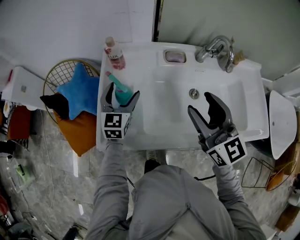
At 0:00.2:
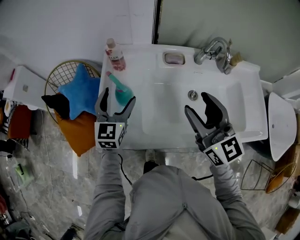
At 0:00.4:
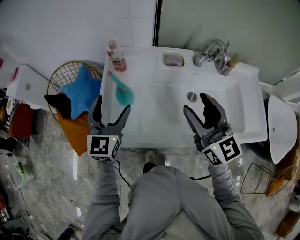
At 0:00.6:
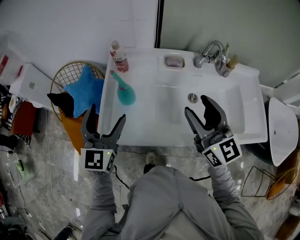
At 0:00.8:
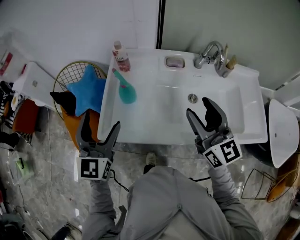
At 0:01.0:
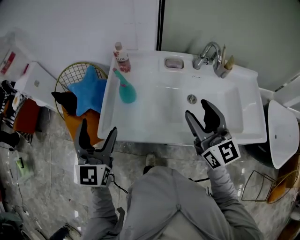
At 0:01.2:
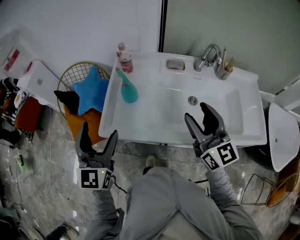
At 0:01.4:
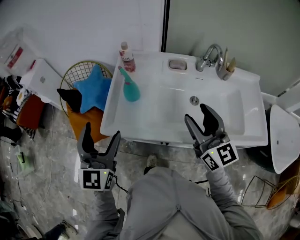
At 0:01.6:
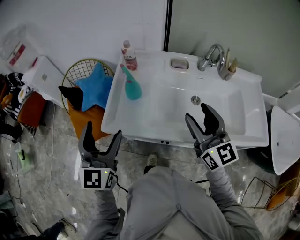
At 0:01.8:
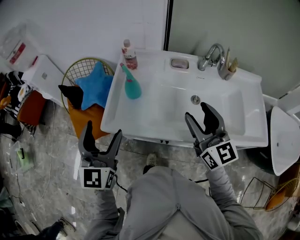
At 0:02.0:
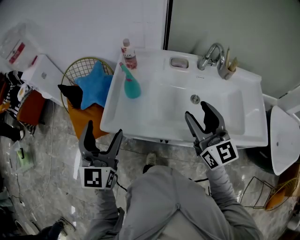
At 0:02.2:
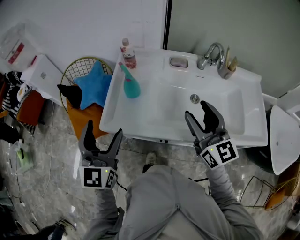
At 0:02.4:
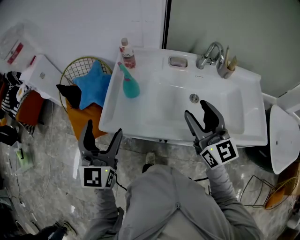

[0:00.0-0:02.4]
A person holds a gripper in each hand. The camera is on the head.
0:00.0 to 0:01.2: The right gripper goes roughly 5 cm backward. Meanwhile the left gripper shifts some 30 cm backward and upward.
0:01.2 to 0:02.4: The grippers move only a little.

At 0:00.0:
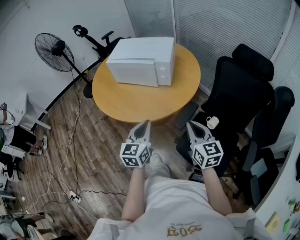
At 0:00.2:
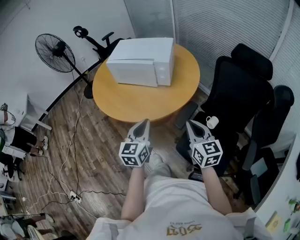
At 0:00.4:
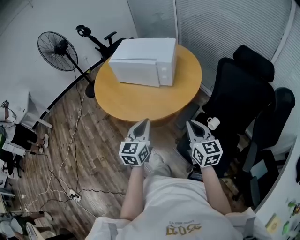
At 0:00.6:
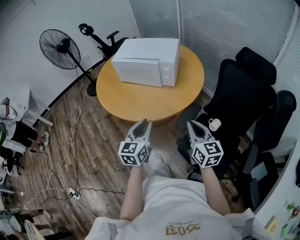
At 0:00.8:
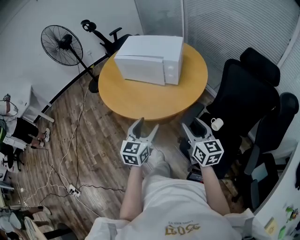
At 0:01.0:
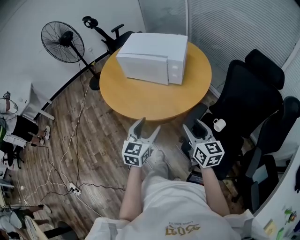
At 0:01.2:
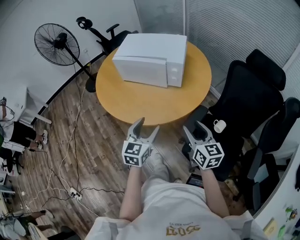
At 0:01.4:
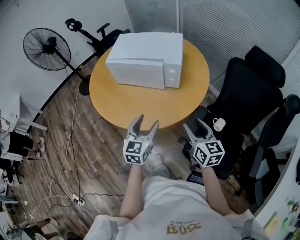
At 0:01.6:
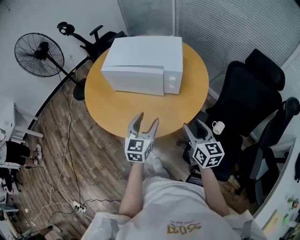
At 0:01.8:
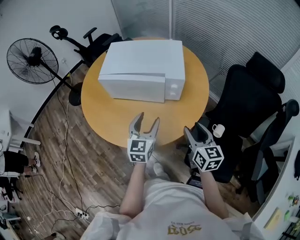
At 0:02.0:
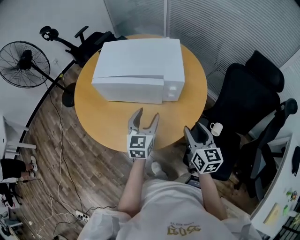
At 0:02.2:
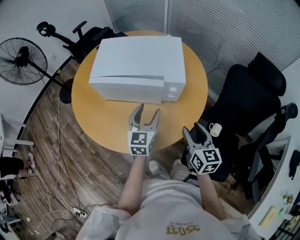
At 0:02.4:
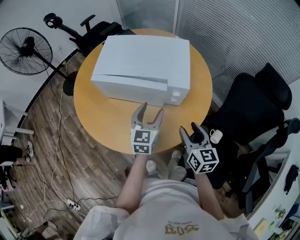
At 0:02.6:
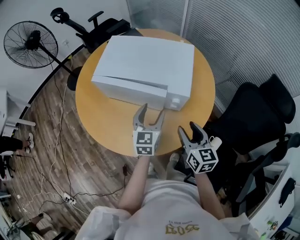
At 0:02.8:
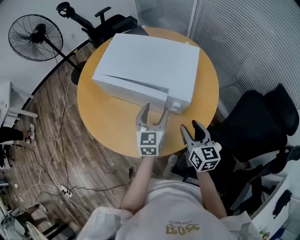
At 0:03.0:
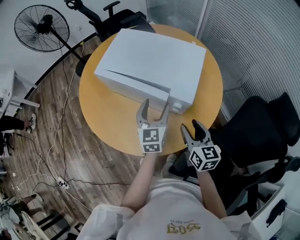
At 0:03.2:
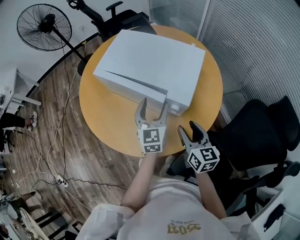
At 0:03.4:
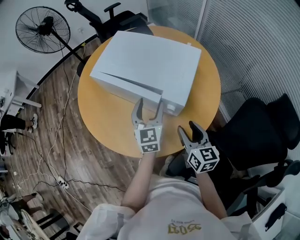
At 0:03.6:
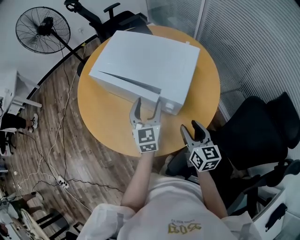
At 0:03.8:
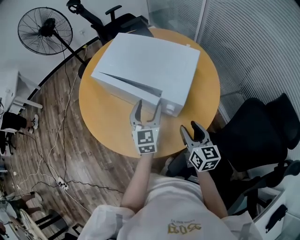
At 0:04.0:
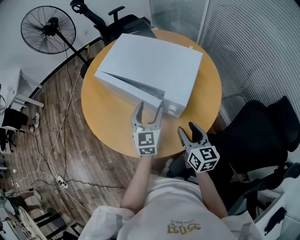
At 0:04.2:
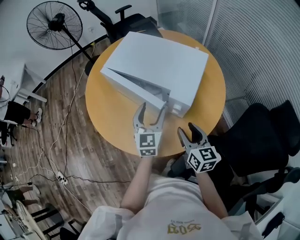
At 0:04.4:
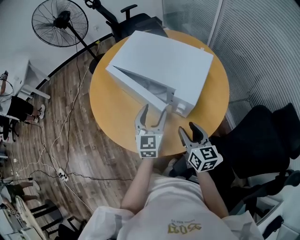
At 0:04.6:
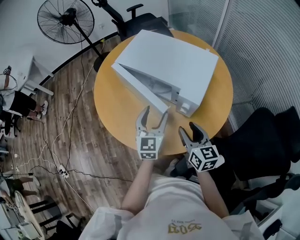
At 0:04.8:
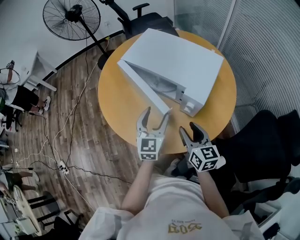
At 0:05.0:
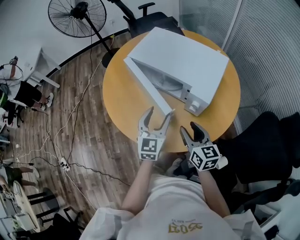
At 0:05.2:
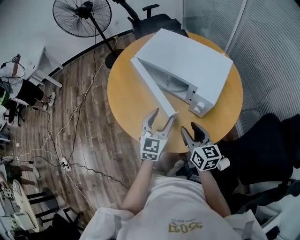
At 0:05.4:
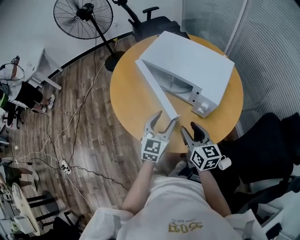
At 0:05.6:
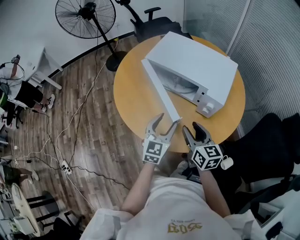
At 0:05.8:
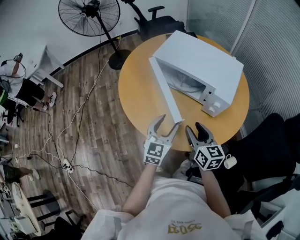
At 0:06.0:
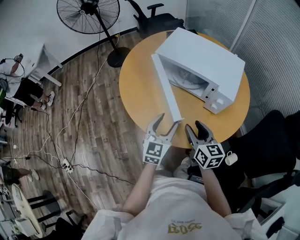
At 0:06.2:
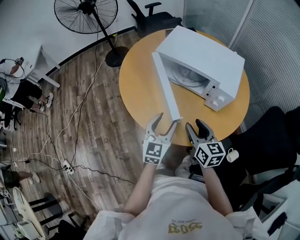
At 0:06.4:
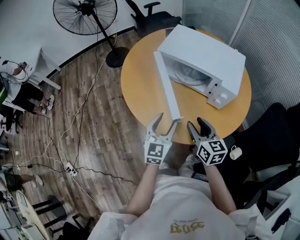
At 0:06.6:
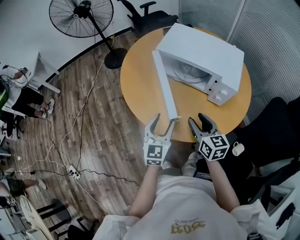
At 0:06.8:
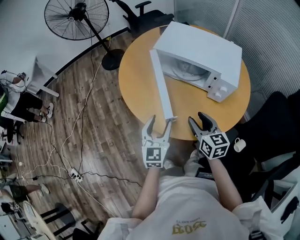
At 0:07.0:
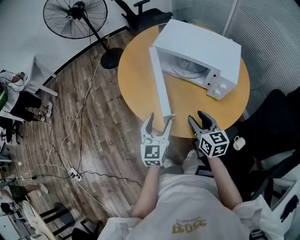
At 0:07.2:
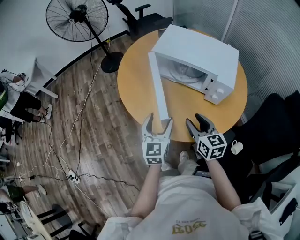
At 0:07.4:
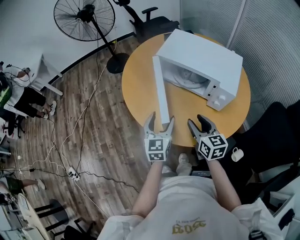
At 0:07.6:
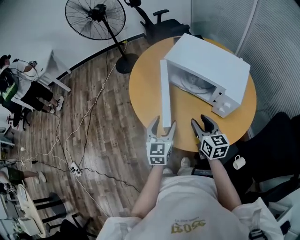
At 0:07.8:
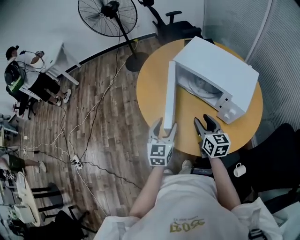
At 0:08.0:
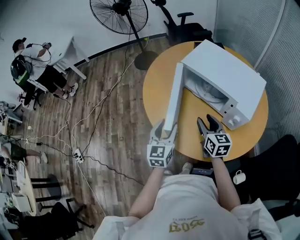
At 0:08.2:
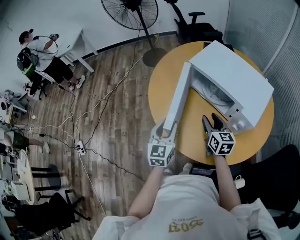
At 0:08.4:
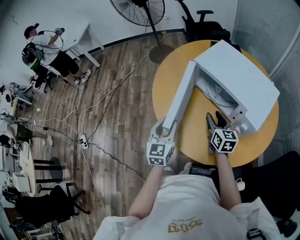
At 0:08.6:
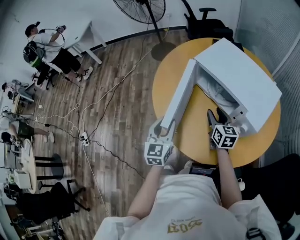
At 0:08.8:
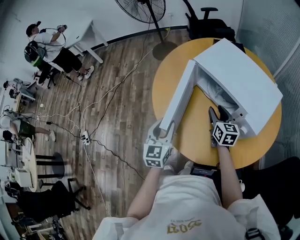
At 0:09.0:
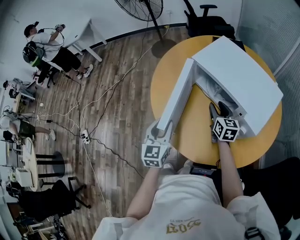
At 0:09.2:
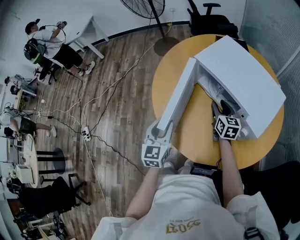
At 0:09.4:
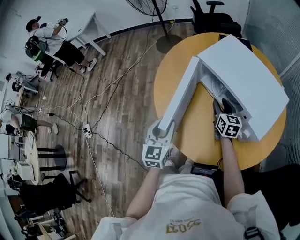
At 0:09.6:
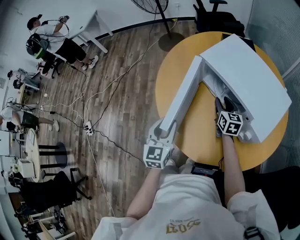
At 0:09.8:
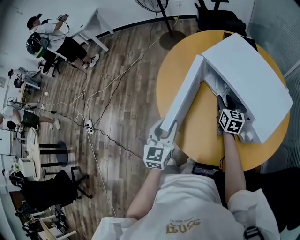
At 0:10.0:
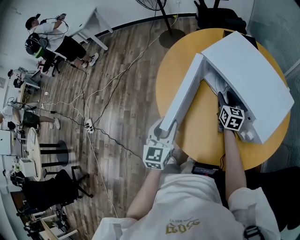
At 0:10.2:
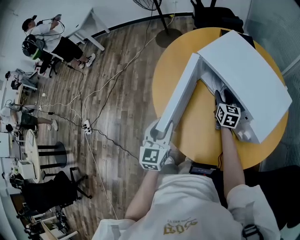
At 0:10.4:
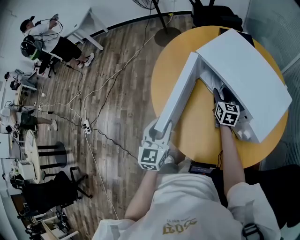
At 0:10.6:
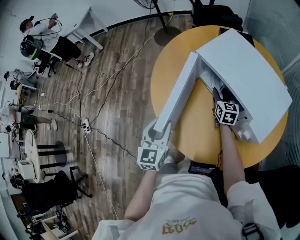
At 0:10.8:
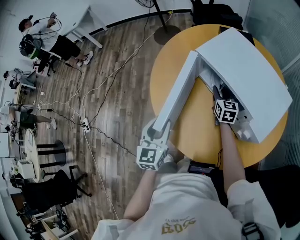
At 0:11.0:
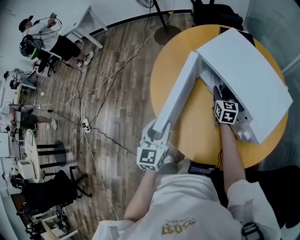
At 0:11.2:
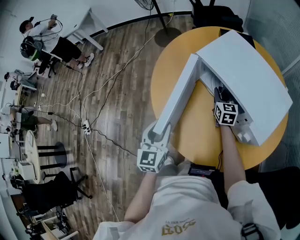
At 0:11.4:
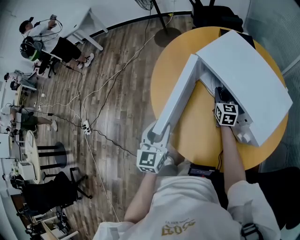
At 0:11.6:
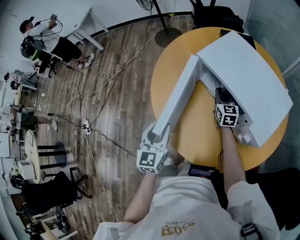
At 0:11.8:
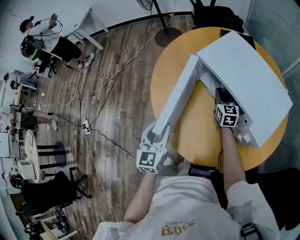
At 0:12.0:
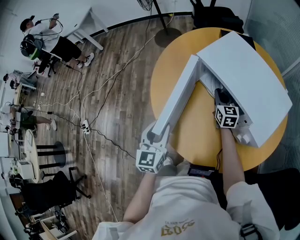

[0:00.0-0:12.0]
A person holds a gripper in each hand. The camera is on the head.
0:00.0 to 0:01.6: The right gripper shifts some 15 cm forward and to the left, and opens up, while the left gripper travels forward by about 15 cm, and opens up.
0:01.6 to 0:03.0: Both grippers move forward, roughly 20 cm. The left gripper swivels roughly 20 degrees.
0:03.0 to 0:04.4: The grippers stay close to where they were, moving slightly.
0:04.4 to 0:06.0: The right gripper is displaced to the left by some 15 cm. Meanwhile the left gripper heads to the left and backward, covering some 15 cm.
0:06.0 to 0:07.6: The left gripper is displaced to the left by some 5 cm.
0:07.6 to 0:09.0: The left gripper closes. The right gripper moves forward, about 15 cm.
0:09.0 to 0:10.4: The right gripper shifts some 10 cm forward.
0:10.4 to 0:12.0: The right gripper closes its fingers.

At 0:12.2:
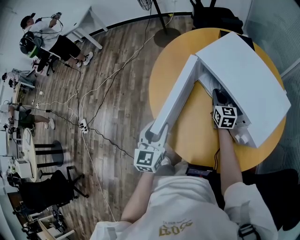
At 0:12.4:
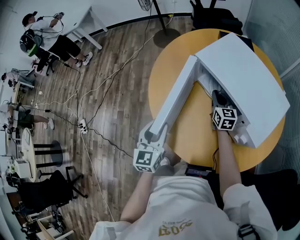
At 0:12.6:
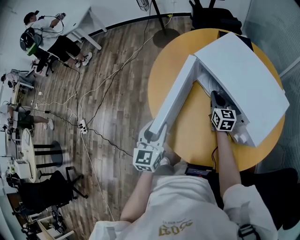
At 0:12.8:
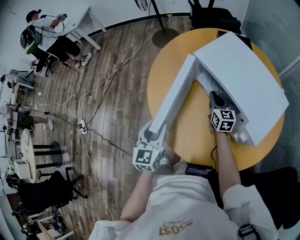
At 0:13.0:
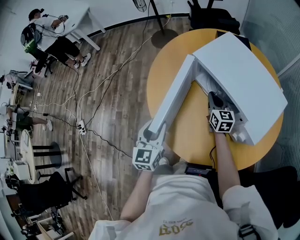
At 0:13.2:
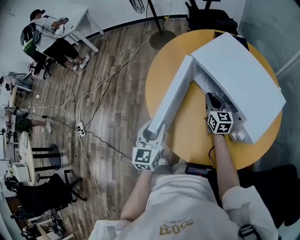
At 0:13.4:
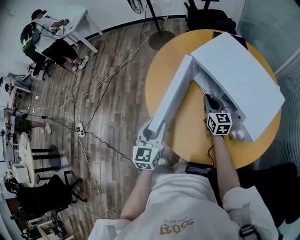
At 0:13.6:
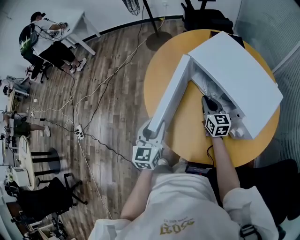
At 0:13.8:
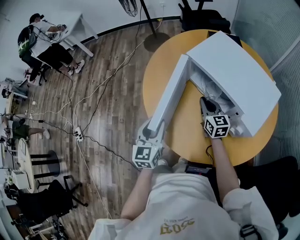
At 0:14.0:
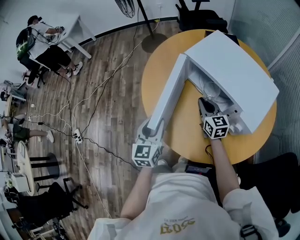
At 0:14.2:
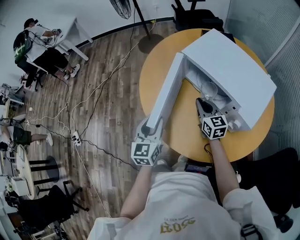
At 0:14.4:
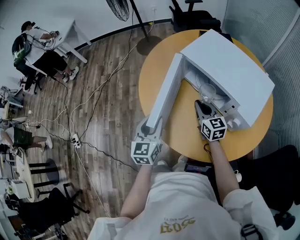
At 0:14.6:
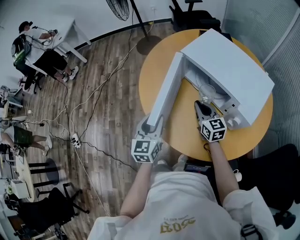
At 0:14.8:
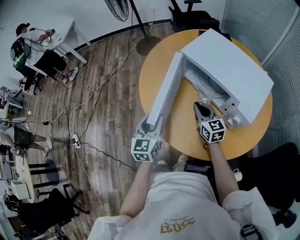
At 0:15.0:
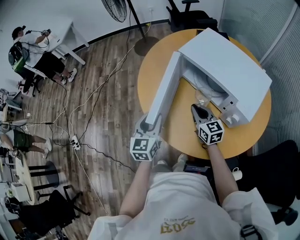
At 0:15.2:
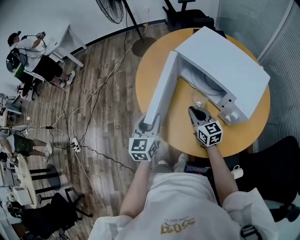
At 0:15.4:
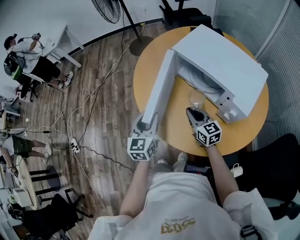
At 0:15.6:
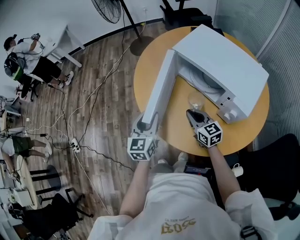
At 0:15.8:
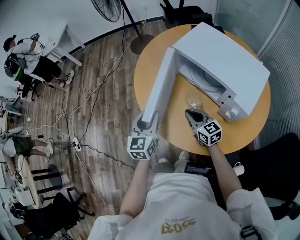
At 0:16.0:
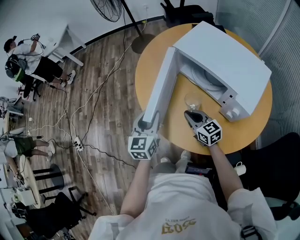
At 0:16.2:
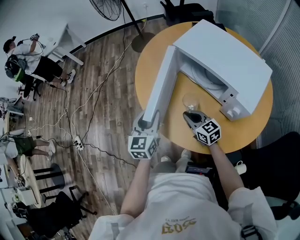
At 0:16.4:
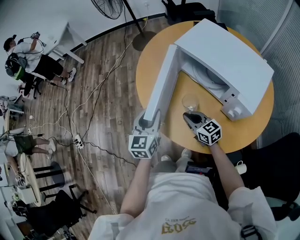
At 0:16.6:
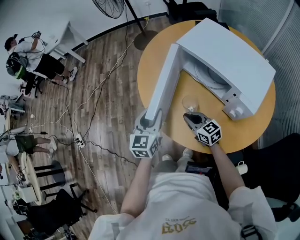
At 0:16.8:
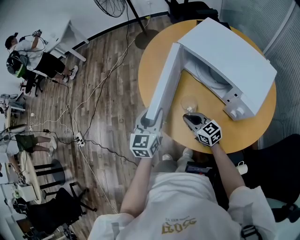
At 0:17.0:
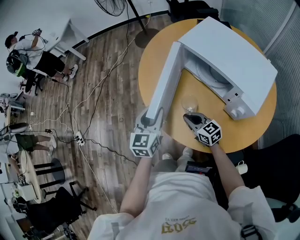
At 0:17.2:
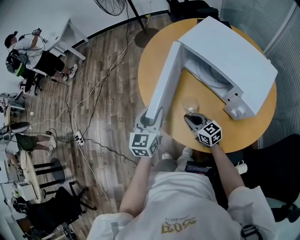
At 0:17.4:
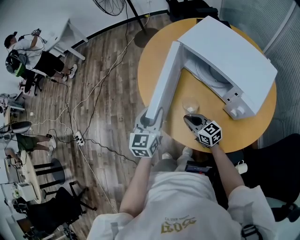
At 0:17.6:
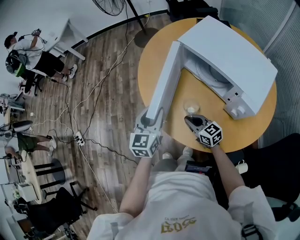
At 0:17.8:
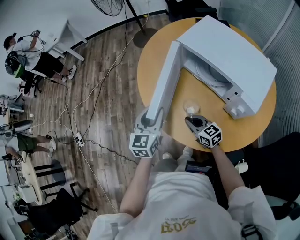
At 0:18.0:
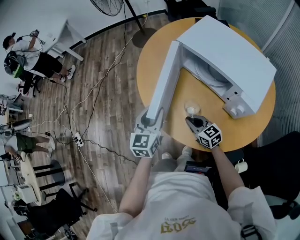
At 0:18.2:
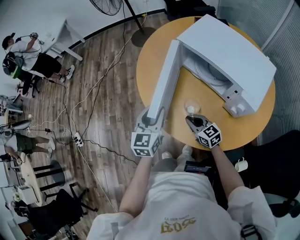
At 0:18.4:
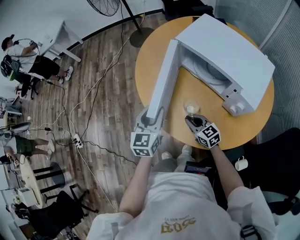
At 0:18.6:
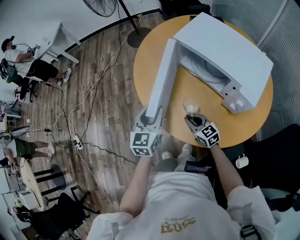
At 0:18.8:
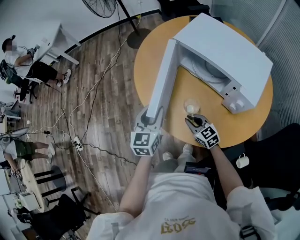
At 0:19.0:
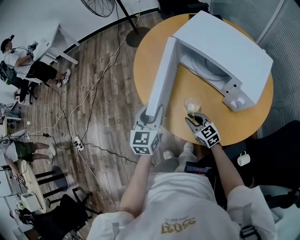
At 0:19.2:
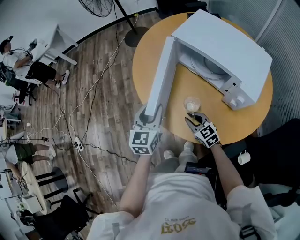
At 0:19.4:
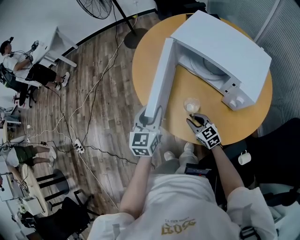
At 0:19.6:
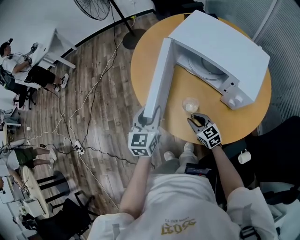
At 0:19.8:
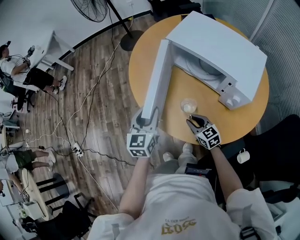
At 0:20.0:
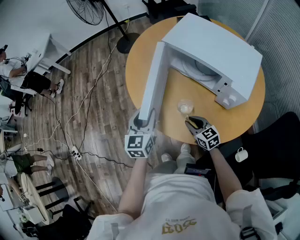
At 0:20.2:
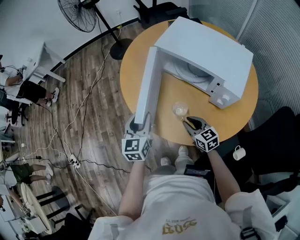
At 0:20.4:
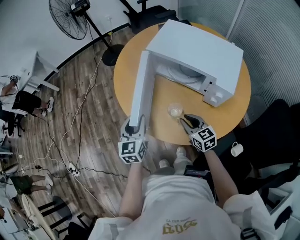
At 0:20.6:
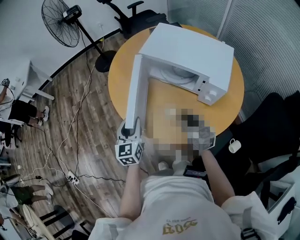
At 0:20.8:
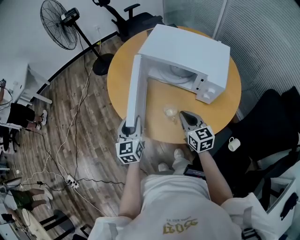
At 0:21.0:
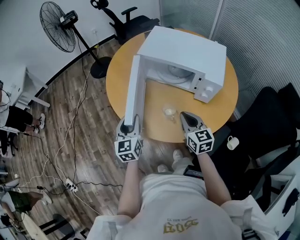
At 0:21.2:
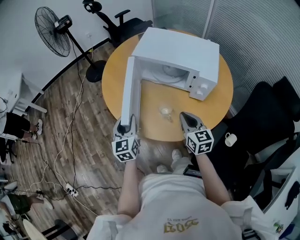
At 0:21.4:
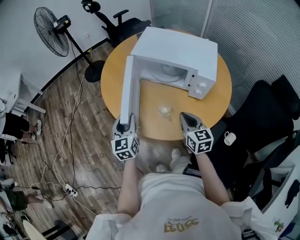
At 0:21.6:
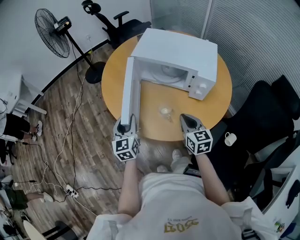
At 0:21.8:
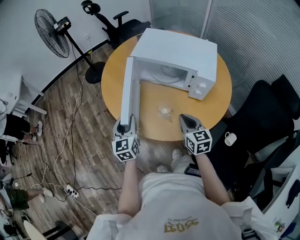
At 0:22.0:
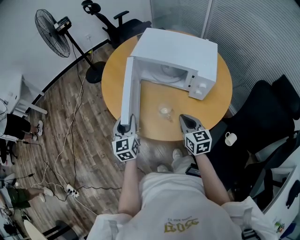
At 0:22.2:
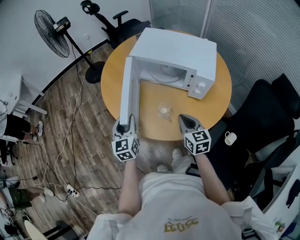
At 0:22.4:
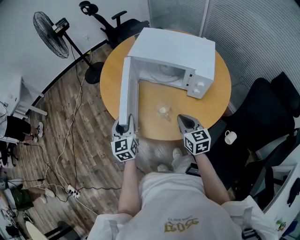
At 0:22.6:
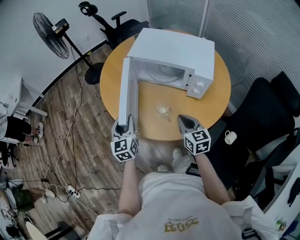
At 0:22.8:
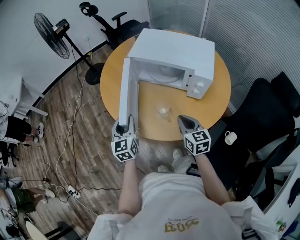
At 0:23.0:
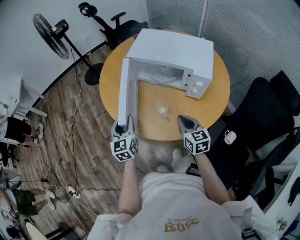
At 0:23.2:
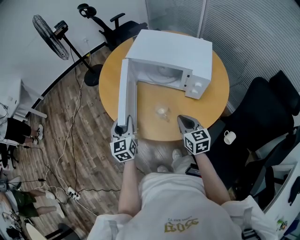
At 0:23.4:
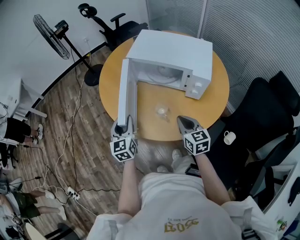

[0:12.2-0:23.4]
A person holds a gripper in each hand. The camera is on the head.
0:12.2 to 0:13.8: The right gripper travels backward by approximately 5 cm.
0:13.8 to 0:15.4: The right gripper shifts approximately 10 cm backward.
0:15.4 to 0:17.0: The right gripper goes approximately 10 cm to the left and downward.
0:17.0 to 0:18.6: The grippers move only a little.
0:18.6 to 0:20.2: The right gripper moves some 5 cm.
0:20.2 to 0:21.8: The right gripper heads upward, covering approximately 10 cm, and swivels some 30 degrees.
0:21.8 to 0:23.4: Both grippers stay about where they are.
